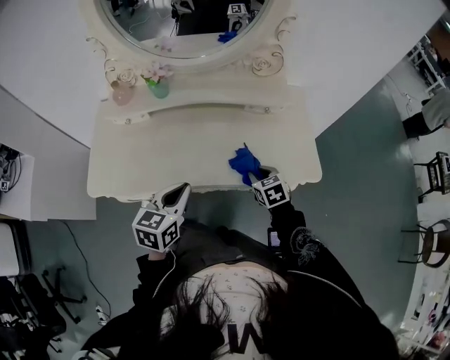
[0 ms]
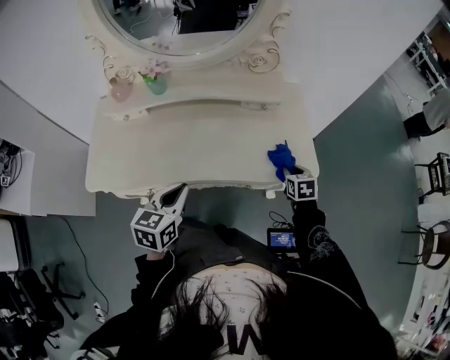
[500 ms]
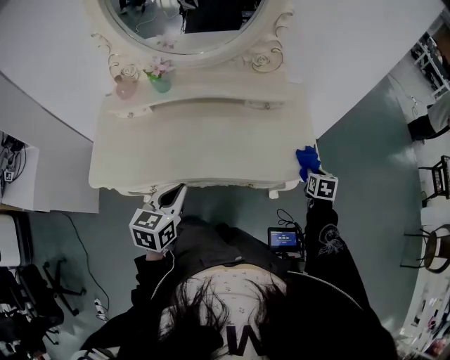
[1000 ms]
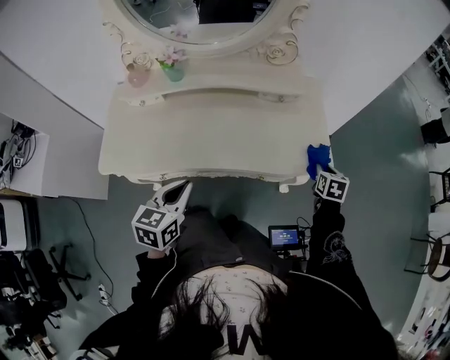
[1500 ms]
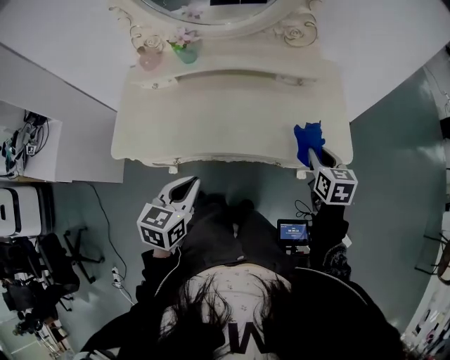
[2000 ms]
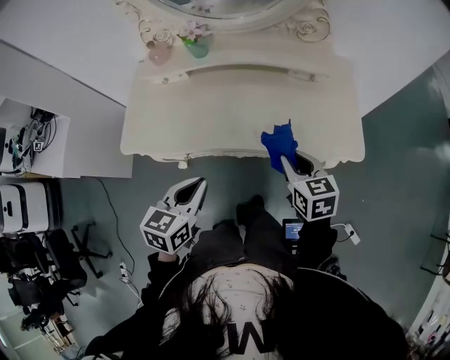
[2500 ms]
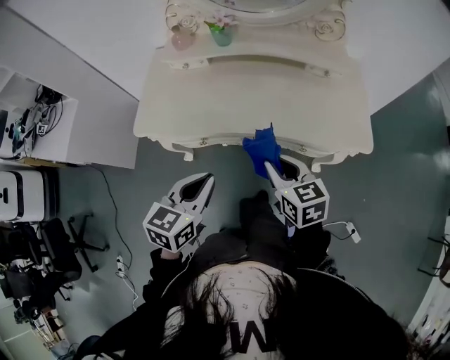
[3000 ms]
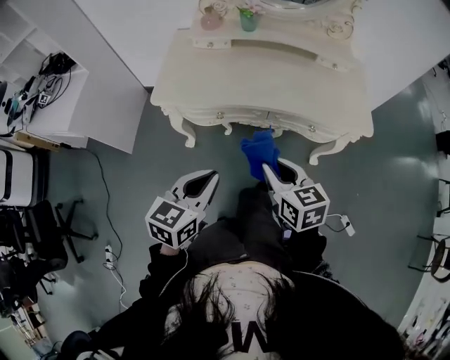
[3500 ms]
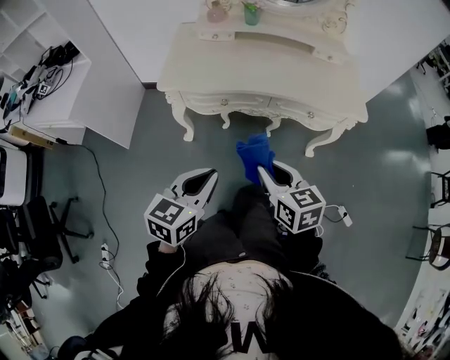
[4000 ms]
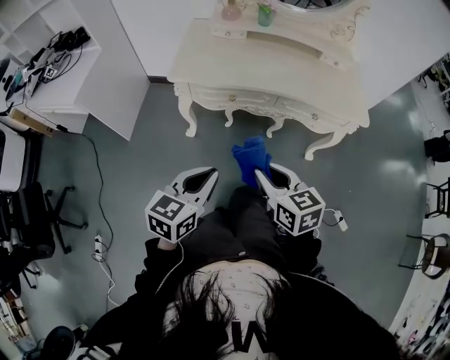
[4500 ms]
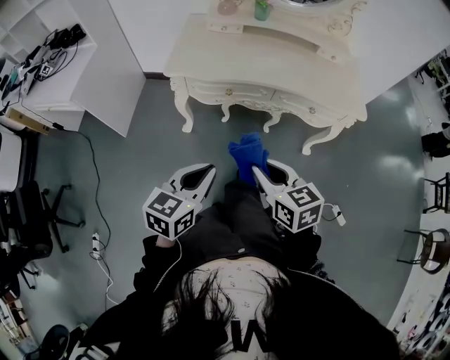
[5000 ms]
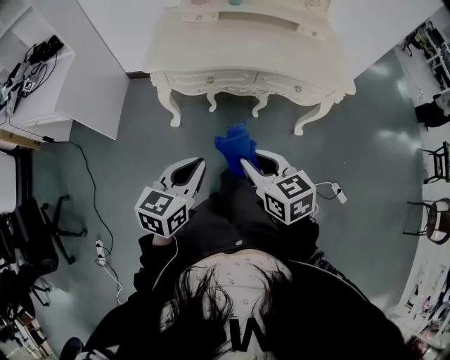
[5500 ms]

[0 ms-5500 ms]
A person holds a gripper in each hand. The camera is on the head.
0 ms to 2000 ms: The right gripper moves to the right and upward, roughly 15 cm, and changes its angle by about 20 degrees. The left gripper is displaced backward by approximately 10 cm.
2000 ms to 3500 ms: The left gripper travels backward and to the left by approximately 20 cm. The right gripper heads to the left and backward, covering approximately 40 cm, and rotates roughly 20 degrees.
3500 ms to 5500 ms: Both grippers move backward and to the left, about 15 cm.

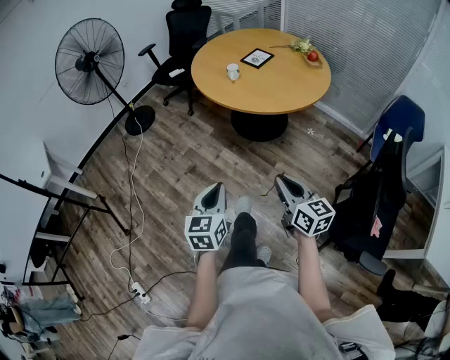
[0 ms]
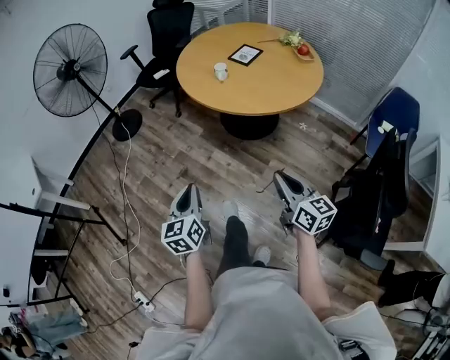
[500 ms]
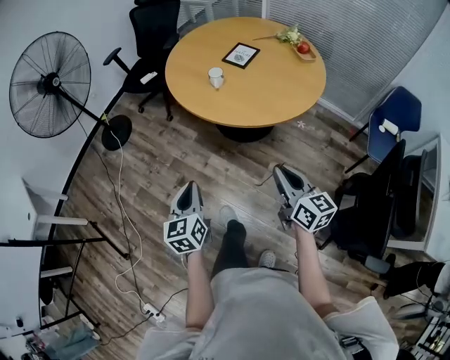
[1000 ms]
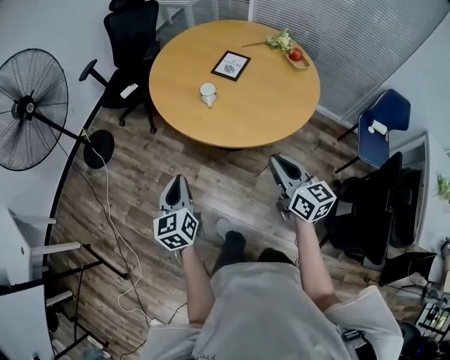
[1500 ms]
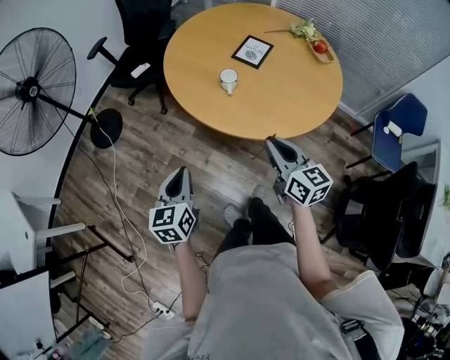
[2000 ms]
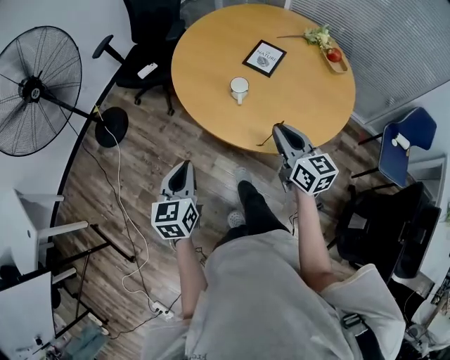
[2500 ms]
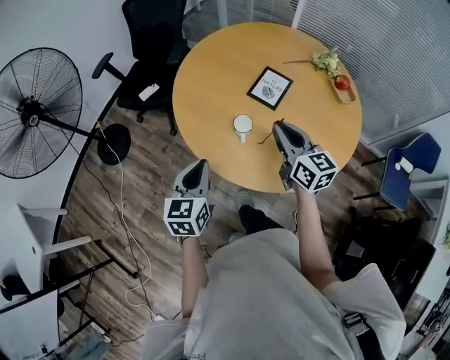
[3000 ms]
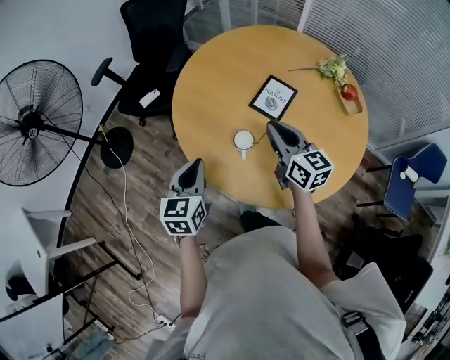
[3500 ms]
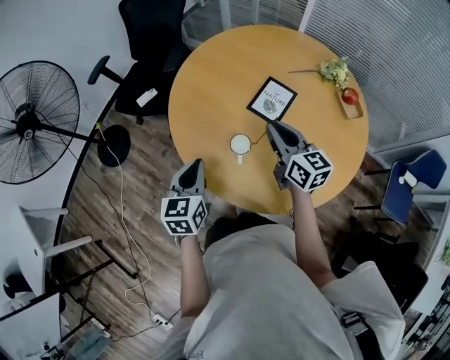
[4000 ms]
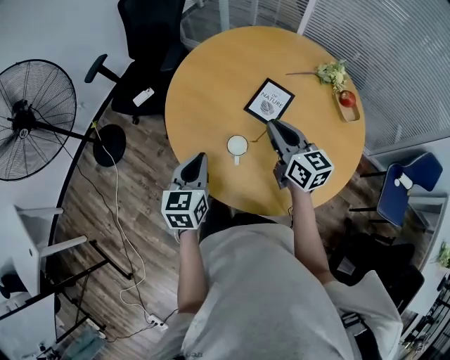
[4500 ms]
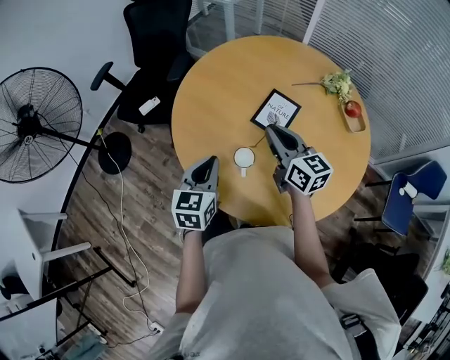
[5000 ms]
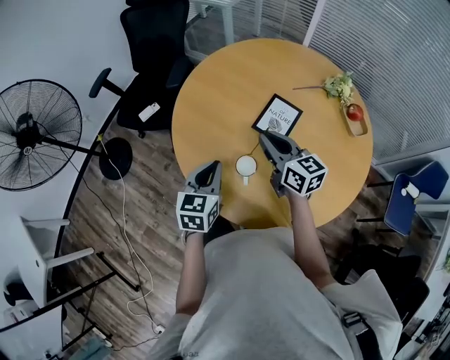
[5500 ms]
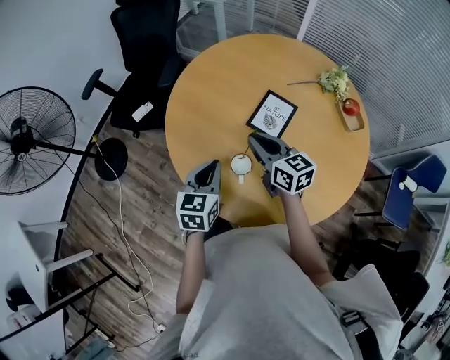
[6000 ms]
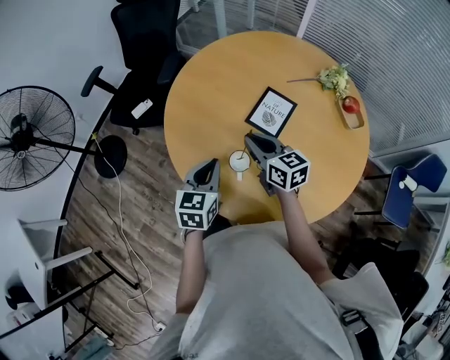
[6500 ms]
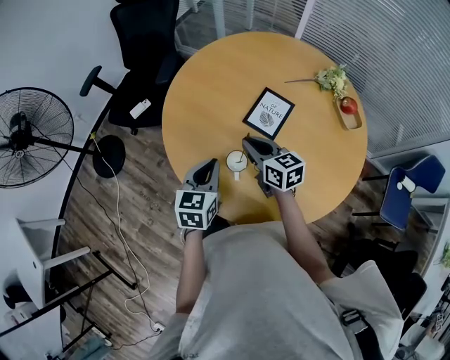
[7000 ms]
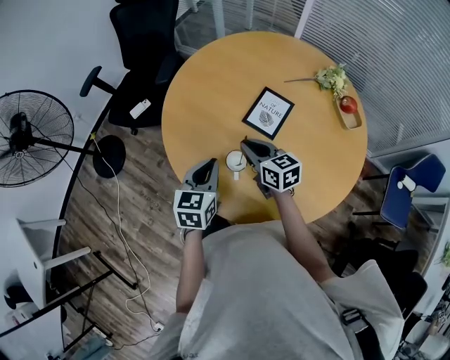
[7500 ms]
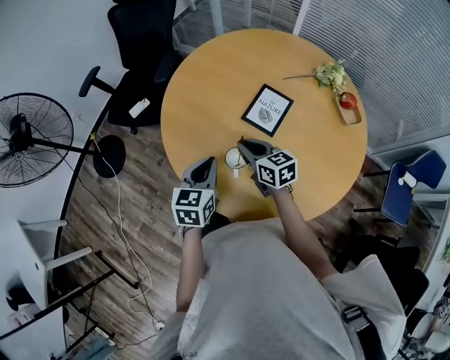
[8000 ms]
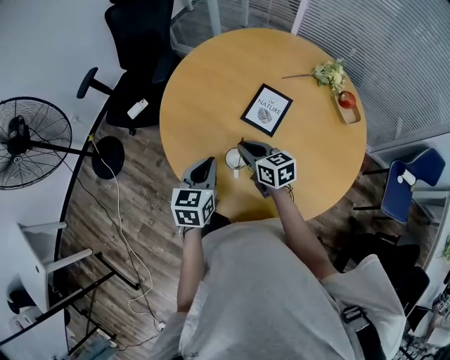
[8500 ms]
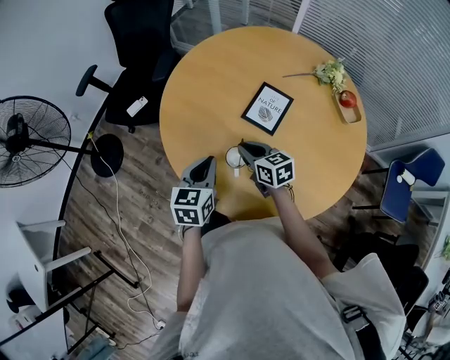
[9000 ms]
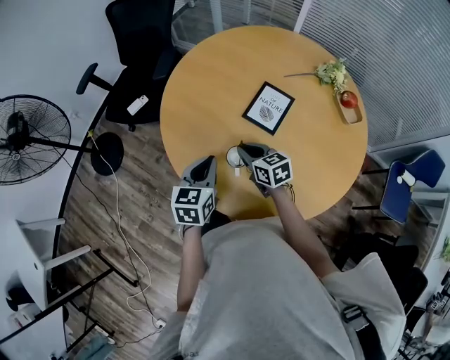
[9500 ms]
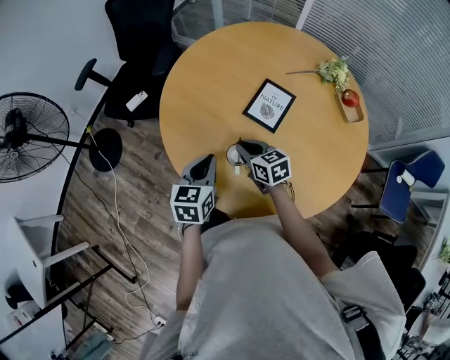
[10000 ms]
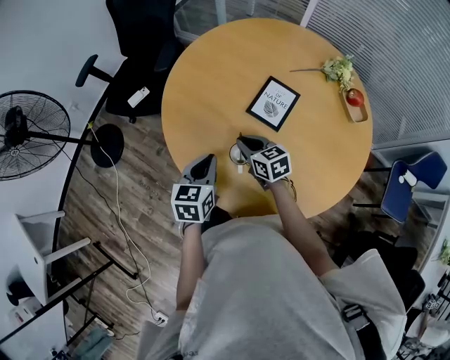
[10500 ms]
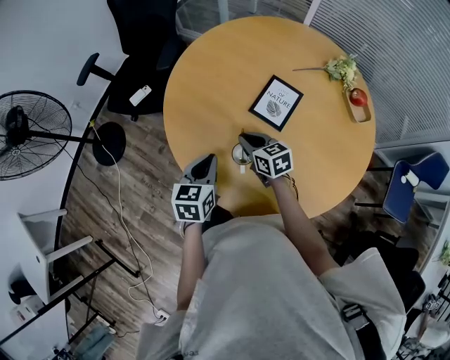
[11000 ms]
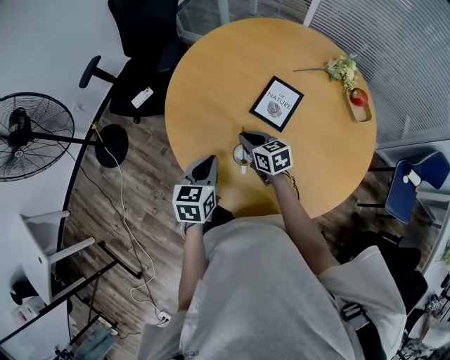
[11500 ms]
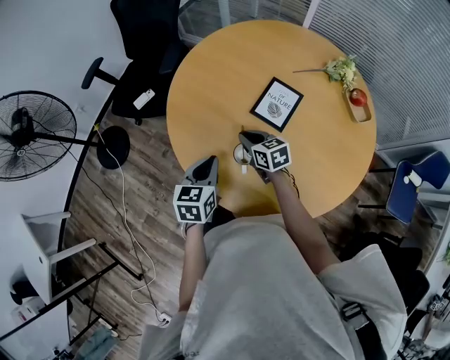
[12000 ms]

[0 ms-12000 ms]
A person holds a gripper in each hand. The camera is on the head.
0 ms to 2000 ms: The two grippers travel together, forward, about 40 cm.
2000 ms to 4000 ms: The grippers both shift forward by about 35 cm.
4000 ms to 6000 ms: The right gripper shifts approximately 5 cm forward; the left gripper shifts approximately 10 cm forward and to the right.
6000 ms to 8000 ms: The right gripper moves downward, some 5 cm.
8000 ms to 10000 ms: The right gripper changes place by roughly 5 cm.
10000 ms to 12000 ms: The grippers move only a little.

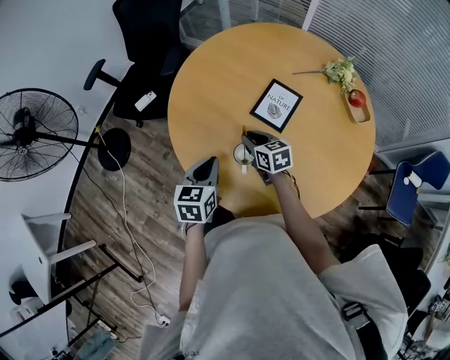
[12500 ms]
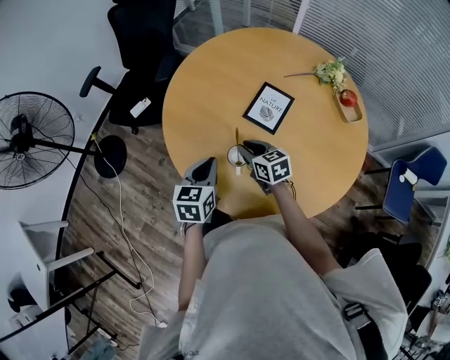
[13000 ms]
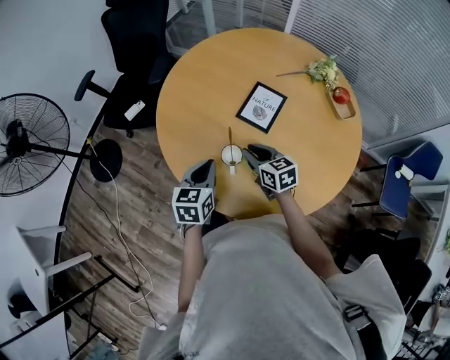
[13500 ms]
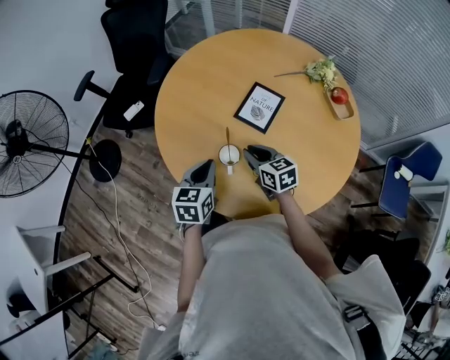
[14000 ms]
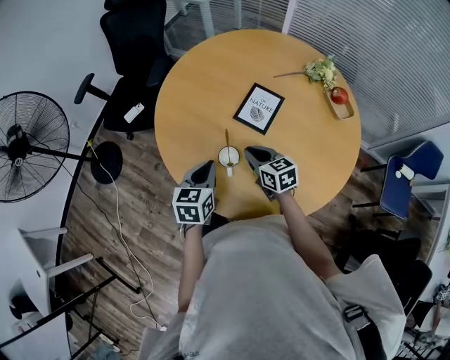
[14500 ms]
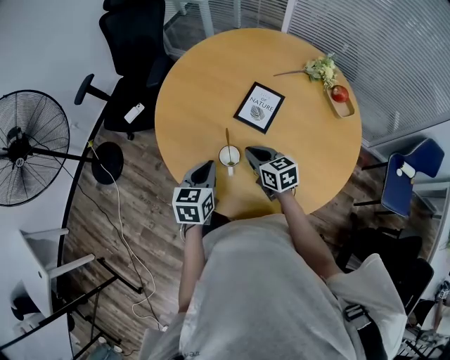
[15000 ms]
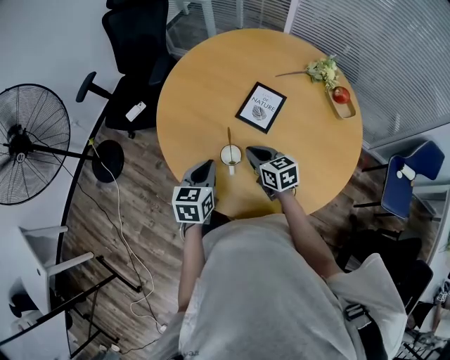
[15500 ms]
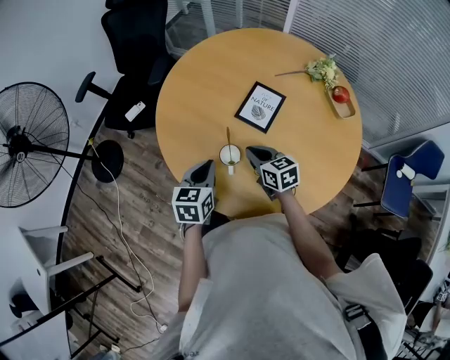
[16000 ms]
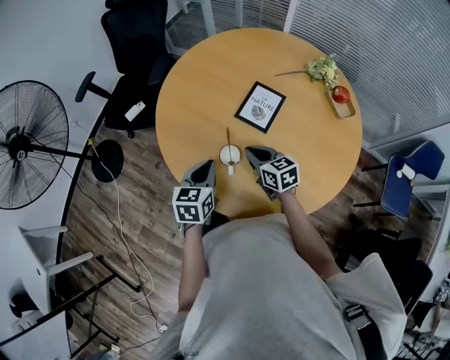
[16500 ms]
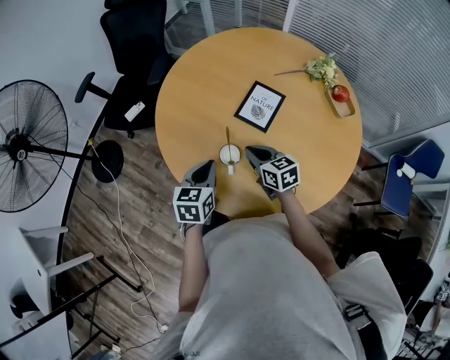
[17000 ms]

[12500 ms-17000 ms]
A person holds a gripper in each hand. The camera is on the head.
12500 ms to 14500 ms: The right gripper travels backward by some 5 cm.
14500 ms to 17000 ms: Both grippers stay about where they are.

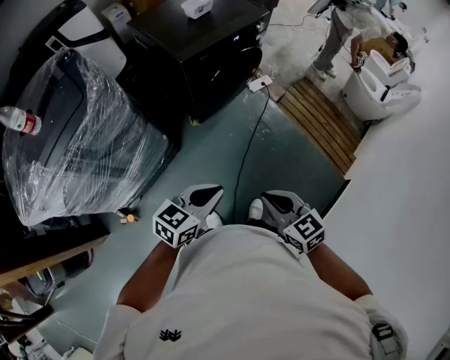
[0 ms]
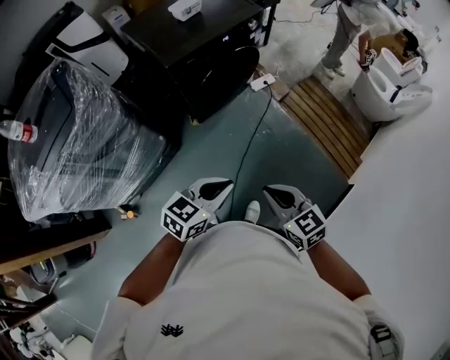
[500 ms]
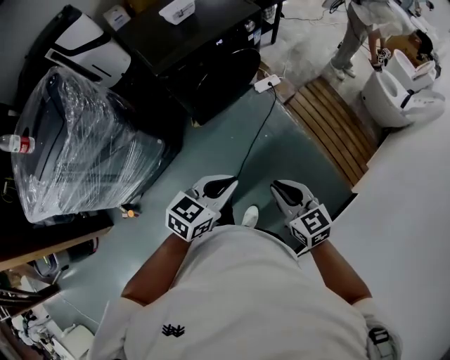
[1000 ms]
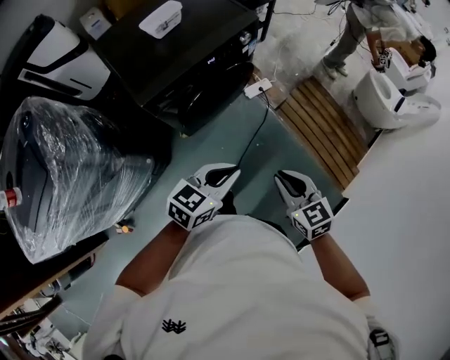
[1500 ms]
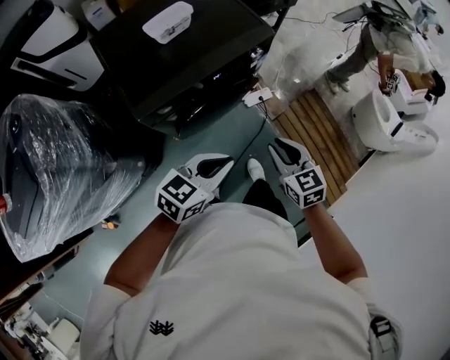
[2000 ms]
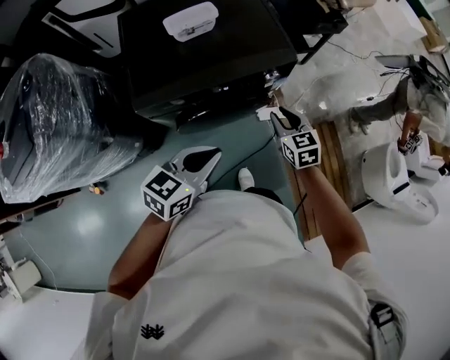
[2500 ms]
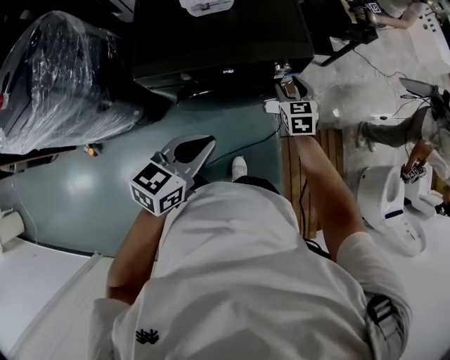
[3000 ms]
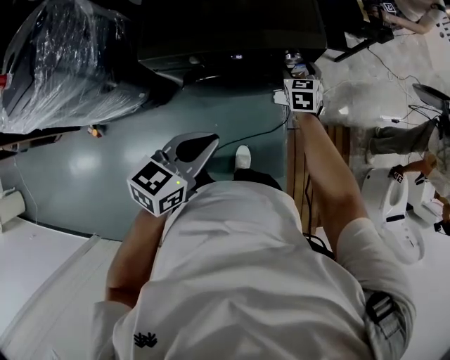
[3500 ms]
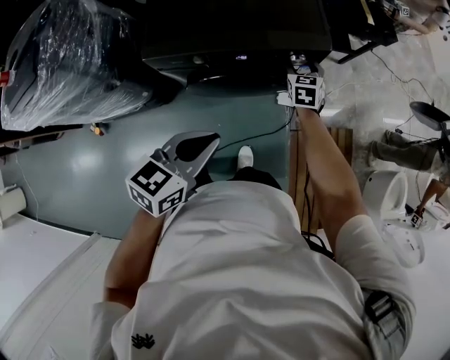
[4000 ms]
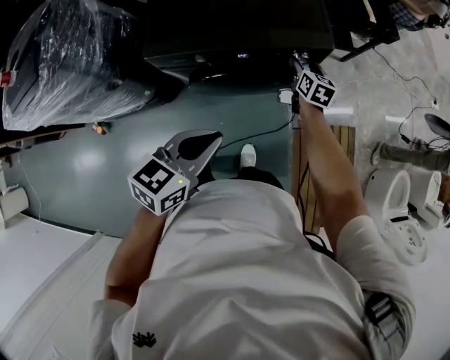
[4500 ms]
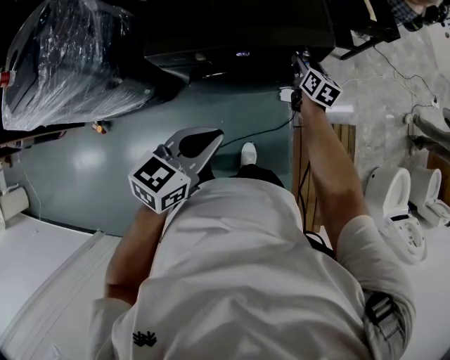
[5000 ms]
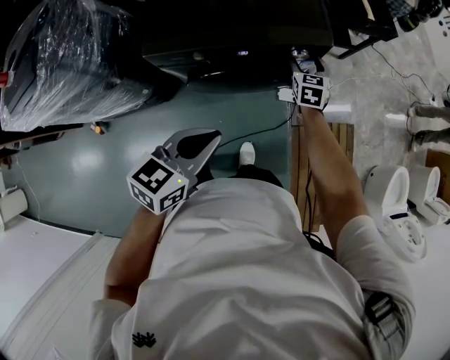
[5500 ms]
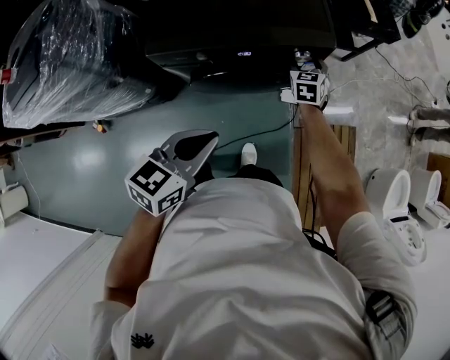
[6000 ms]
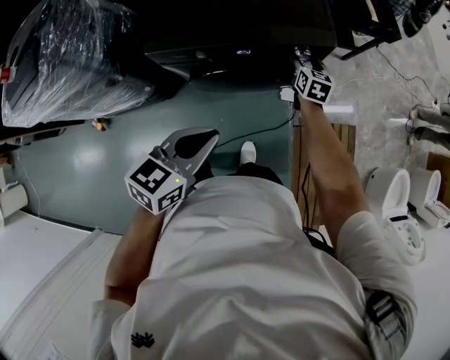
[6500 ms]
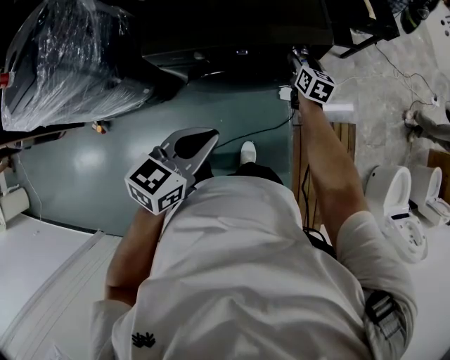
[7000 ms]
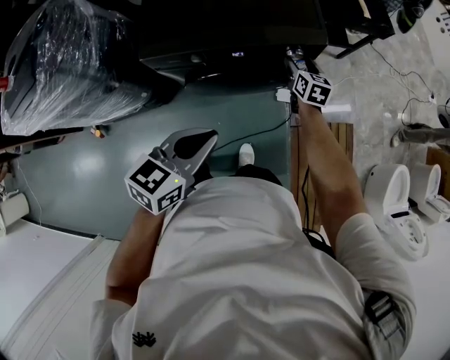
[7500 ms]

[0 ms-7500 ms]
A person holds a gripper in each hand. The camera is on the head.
0 ms to 2000 ms: Both grippers are carried forward, about 50 cm.
2000 ms to 4000 ms: The left gripper is displaced forward by some 5 cm, and rotates roughly 40 degrees, while the right gripper travels forward by about 35 cm, and opens.
